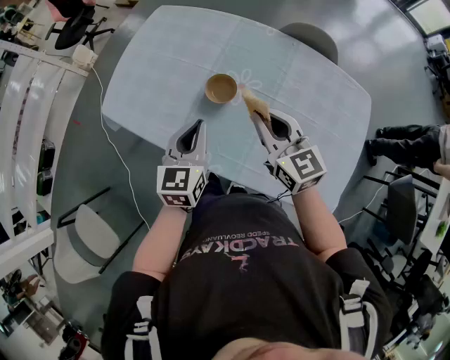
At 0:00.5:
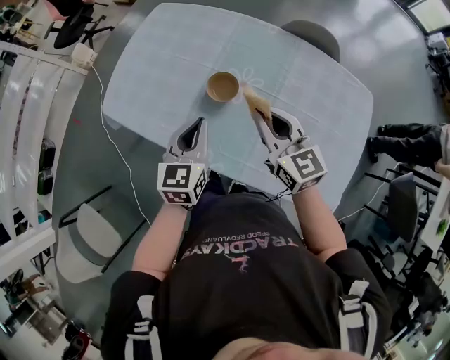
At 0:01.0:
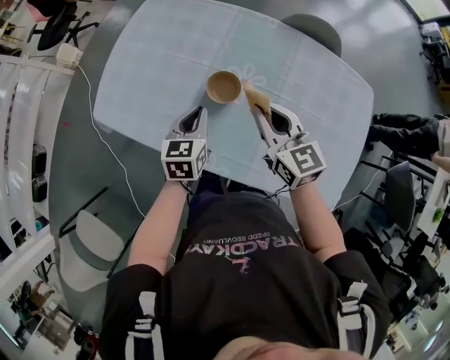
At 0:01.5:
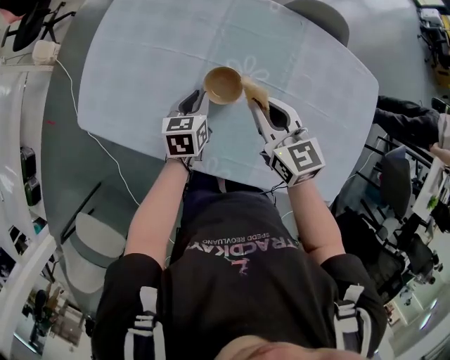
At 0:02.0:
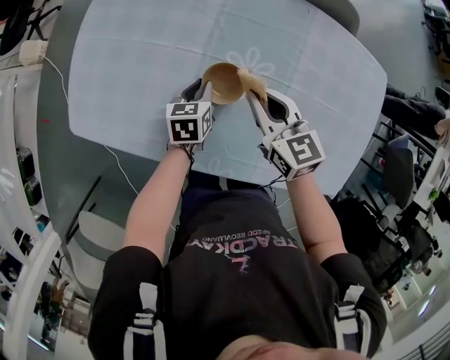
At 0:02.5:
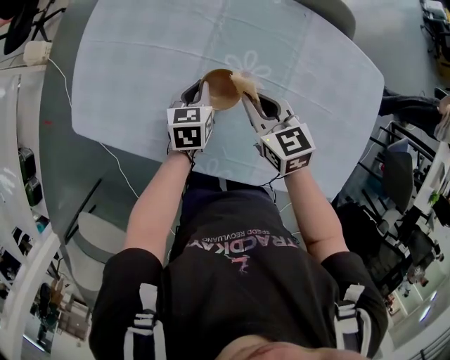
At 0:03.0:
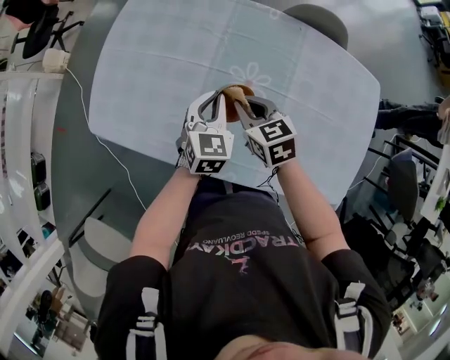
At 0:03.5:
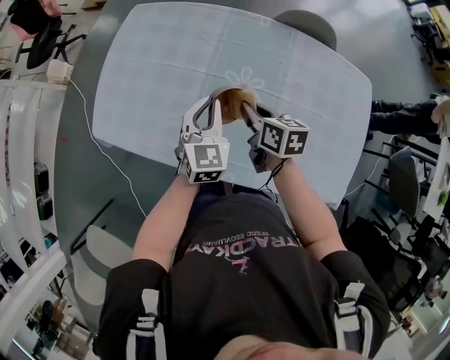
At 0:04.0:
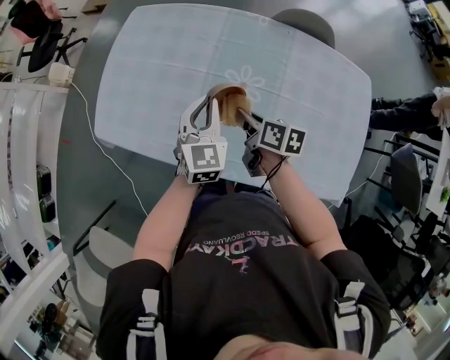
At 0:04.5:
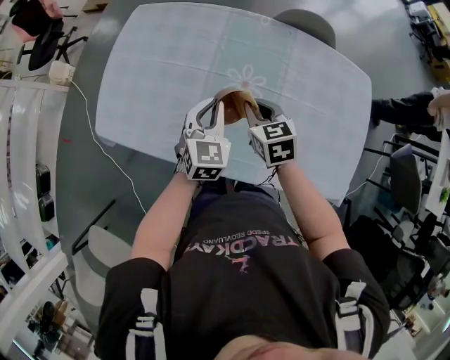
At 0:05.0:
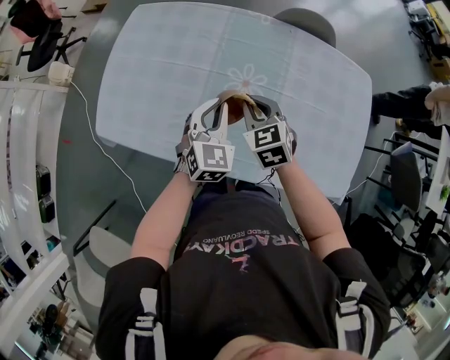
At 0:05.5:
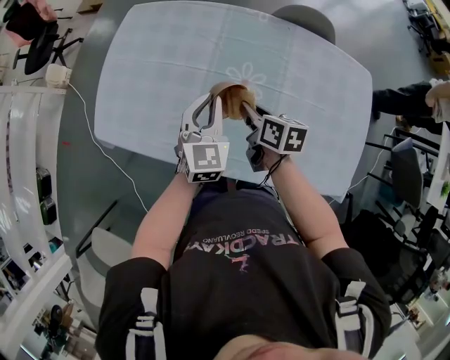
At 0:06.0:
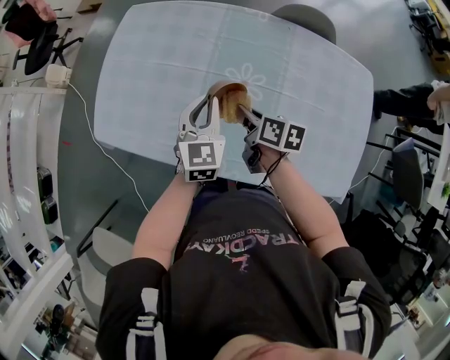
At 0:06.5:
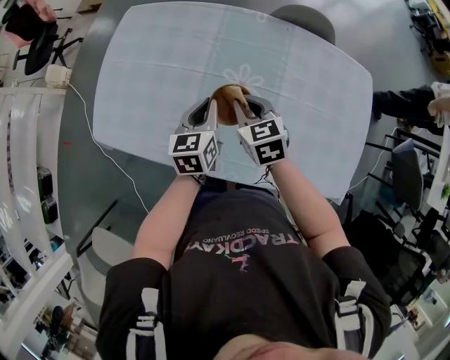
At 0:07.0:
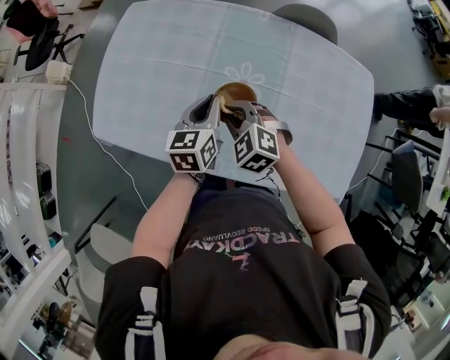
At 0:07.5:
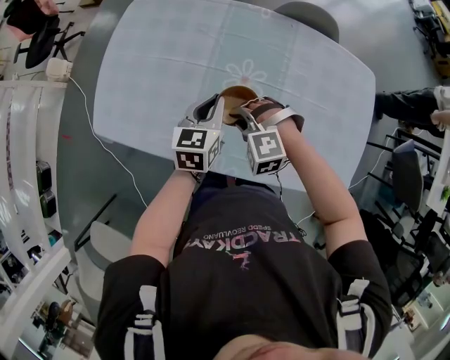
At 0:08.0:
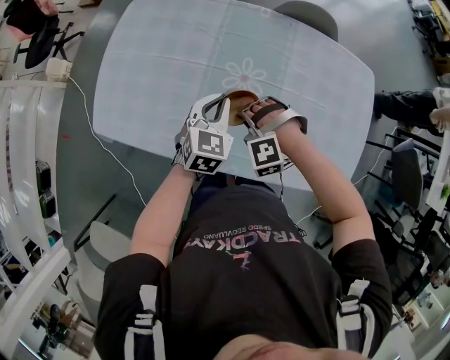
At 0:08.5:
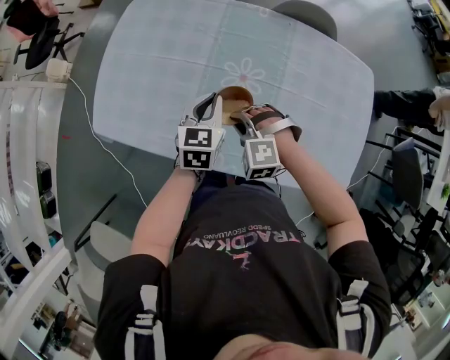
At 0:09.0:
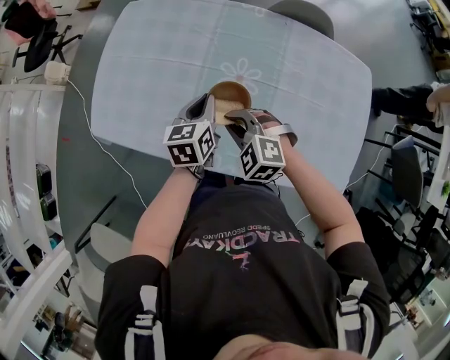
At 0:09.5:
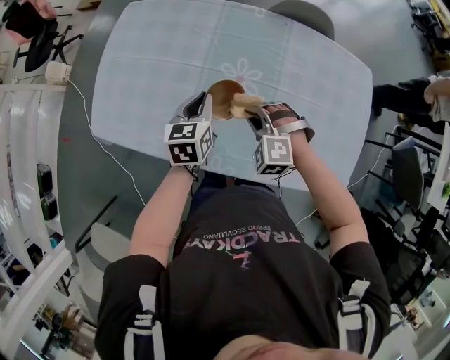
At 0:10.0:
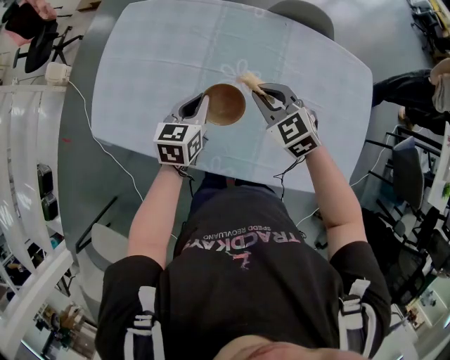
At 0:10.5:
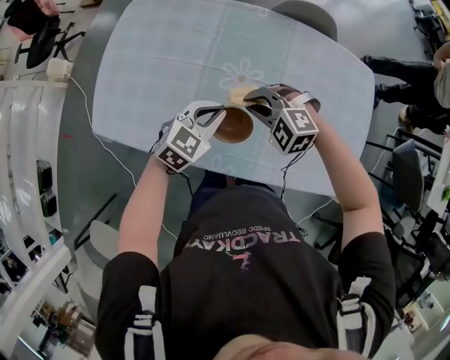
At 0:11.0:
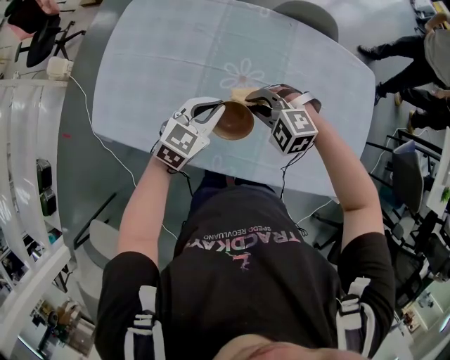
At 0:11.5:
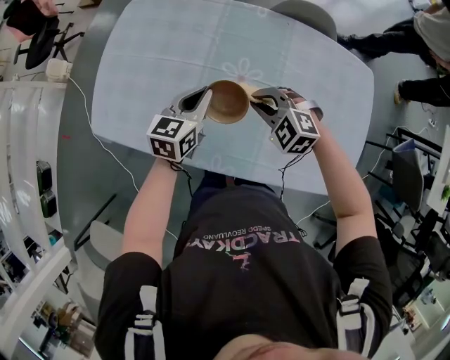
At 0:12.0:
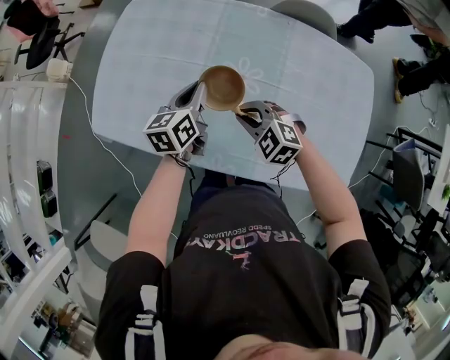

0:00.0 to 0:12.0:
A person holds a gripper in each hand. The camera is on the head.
0:00.0 to 0:02.0: The right gripper travels downward and forward by roughly 20 cm; the left gripper is displaced downward and forward by some 30 cm, and swivels approximately 30 degrees.
0:02.0 to 0:04.0: The right gripper goes roughly 5 cm backward, and rotates around the line of its fingers by roughly 40 degrees, clockwise from behind, while the left gripper is displaced upward by about 20 cm, and rotates some 40 degrees.
0:06.0 to 0:08.0: The right gripper shifts some 5 cm backward, and rotates around the line of its fingers by roughly 140 degrees, counterclockwise from behind. Meanwhile the left gripper moves approximately 5 cm.
0:08.0 to 0:10.0: The right gripper is displaced forward, upward and to the right by approximately 10 cm, and rotates around the line of its fingers by approximately 60 degrees, clockwise from behind; the left gripper changes its angle by about 20 degrees.
0:10.0 to 0:12.0: The right gripper goes about 10 cm backward, to the left and downward, and rotates roughly 20 degrees. The left gripper goes backward and returns, about 5 cm each way.

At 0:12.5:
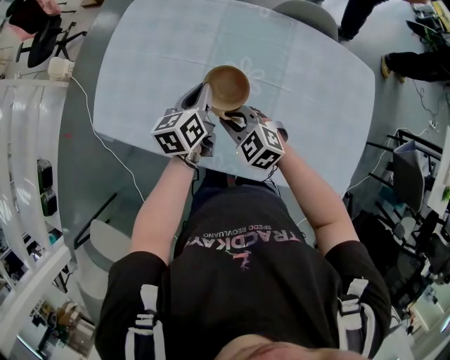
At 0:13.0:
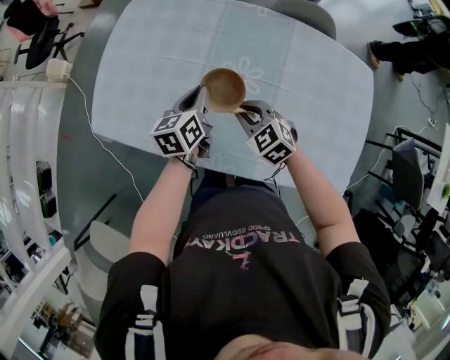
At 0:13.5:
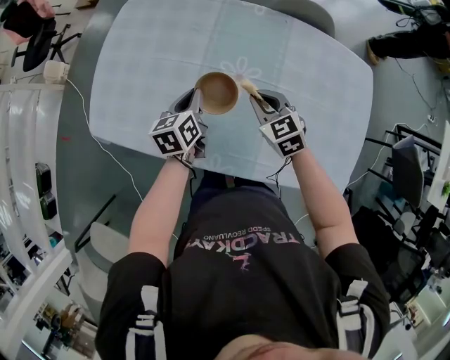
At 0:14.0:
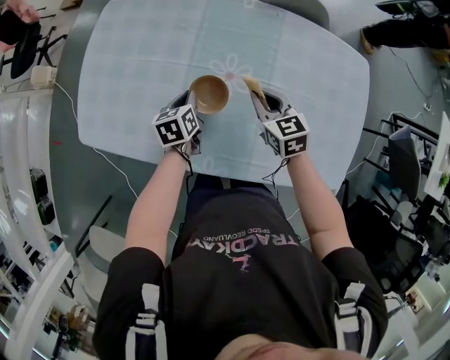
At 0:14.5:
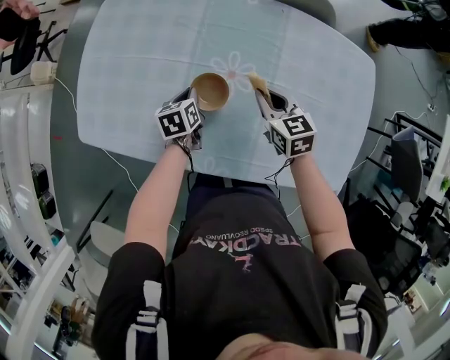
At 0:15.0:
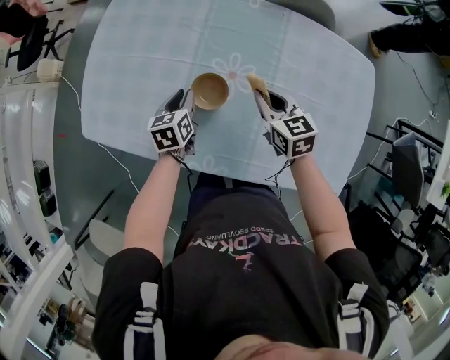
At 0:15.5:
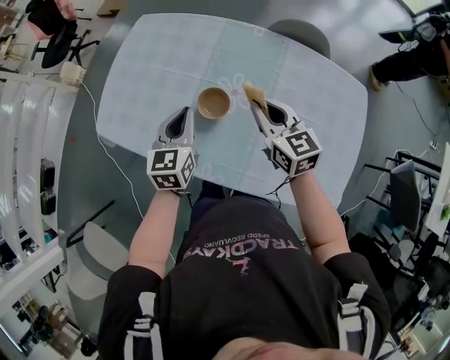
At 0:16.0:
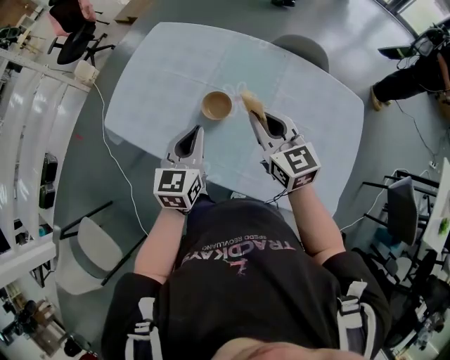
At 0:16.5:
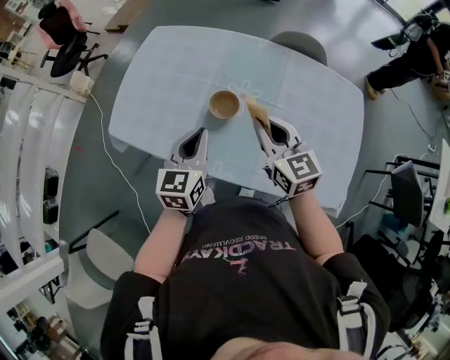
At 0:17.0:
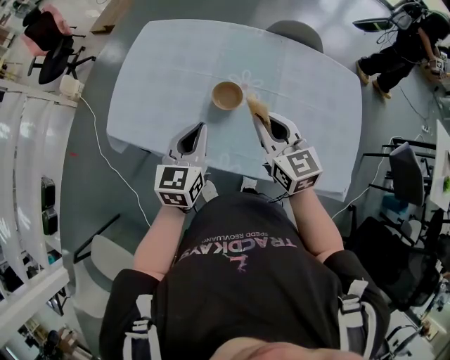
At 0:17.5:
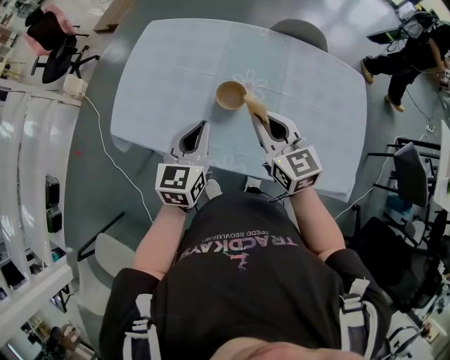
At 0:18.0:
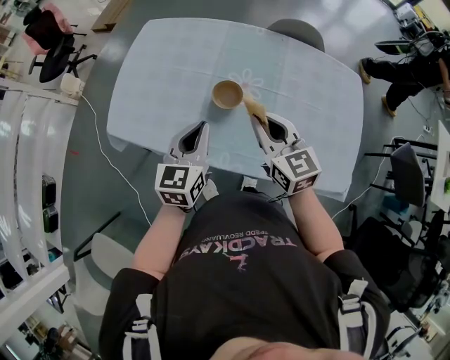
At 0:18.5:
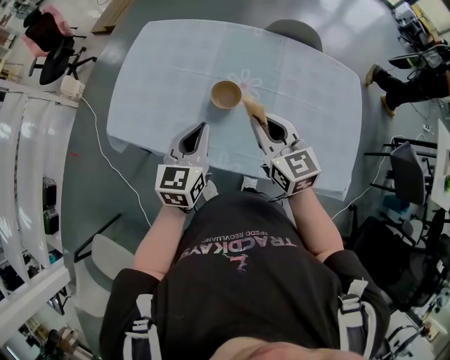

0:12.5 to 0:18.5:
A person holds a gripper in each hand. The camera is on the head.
0:12.5 to 0:14.5: The right gripper moves to the right and forward, roughly 15 cm, and swivels roughly 50 degrees. Meanwhile the left gripper is displaced downward by some 15 cm, and changes its angle by about 20 degrees.
0:14.5 to 0:16.5: The grippers both shift upward and backward by roughly 25 cm. The right gripper turns by about 20 degrees. The left gripper tilts its fingers roughly 30 degrees upward.
0:16.5 to 0:18.5: The grippers make only small movements.

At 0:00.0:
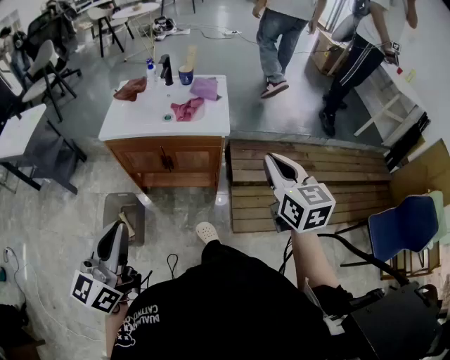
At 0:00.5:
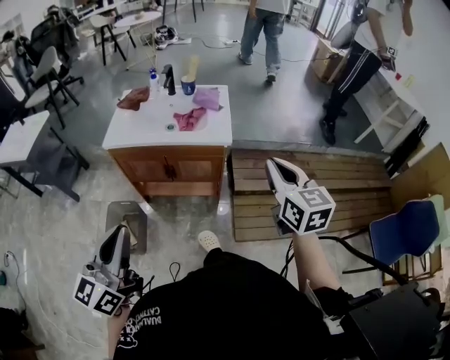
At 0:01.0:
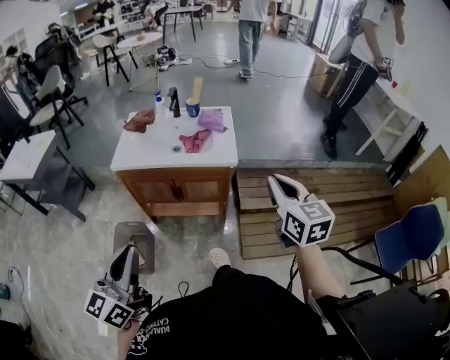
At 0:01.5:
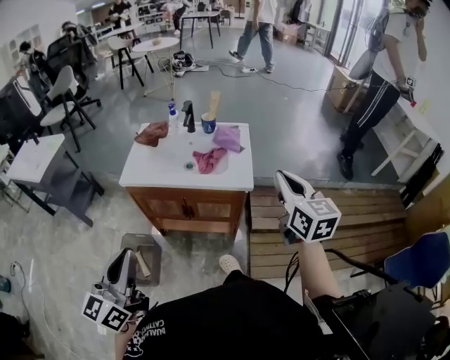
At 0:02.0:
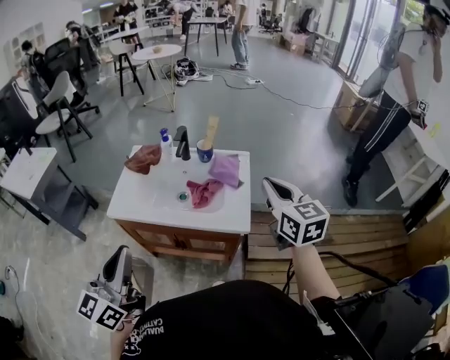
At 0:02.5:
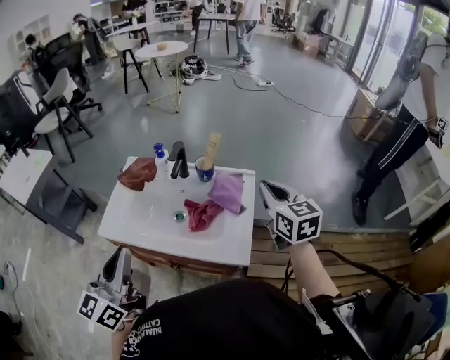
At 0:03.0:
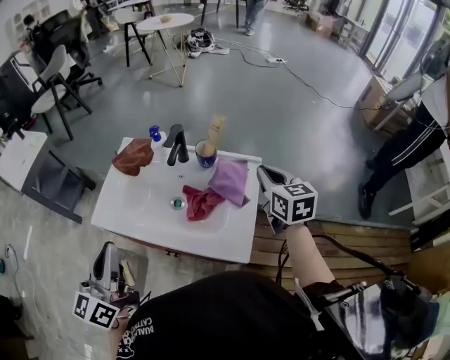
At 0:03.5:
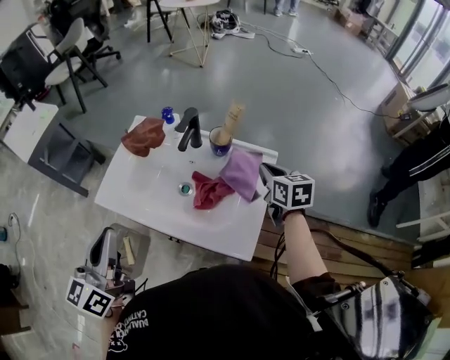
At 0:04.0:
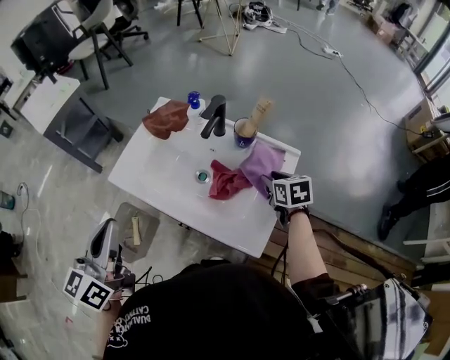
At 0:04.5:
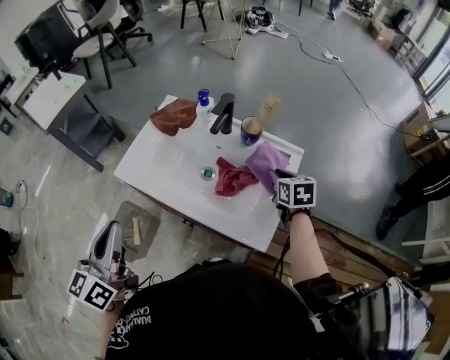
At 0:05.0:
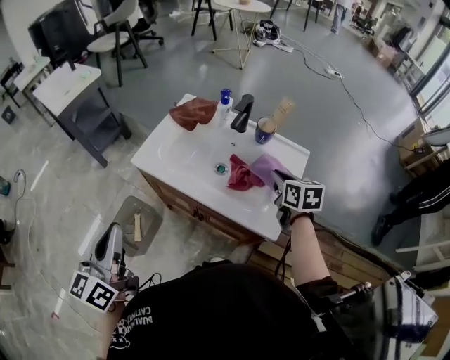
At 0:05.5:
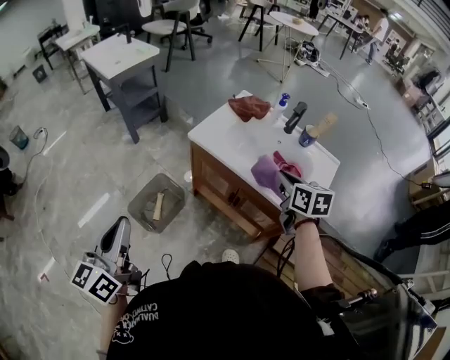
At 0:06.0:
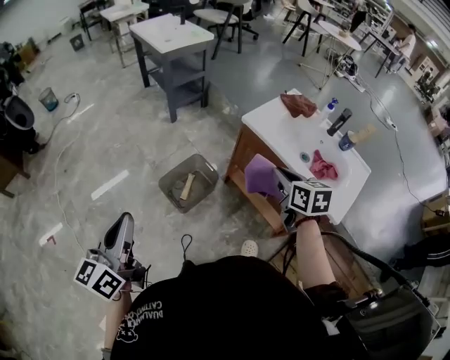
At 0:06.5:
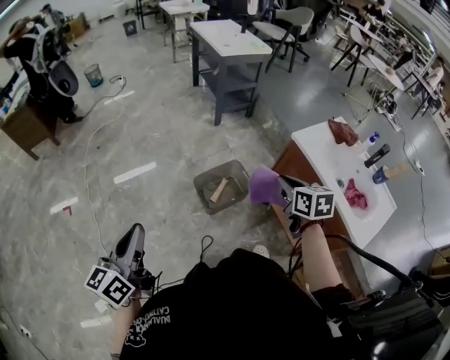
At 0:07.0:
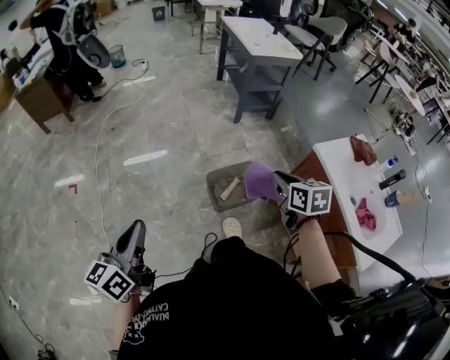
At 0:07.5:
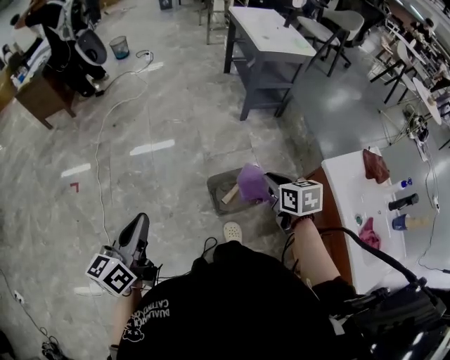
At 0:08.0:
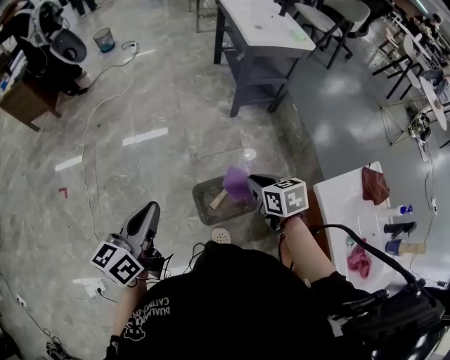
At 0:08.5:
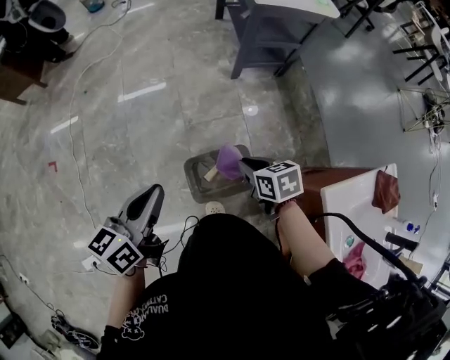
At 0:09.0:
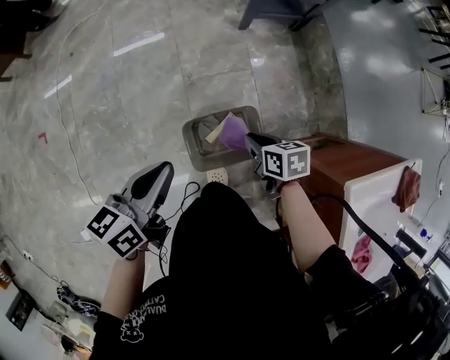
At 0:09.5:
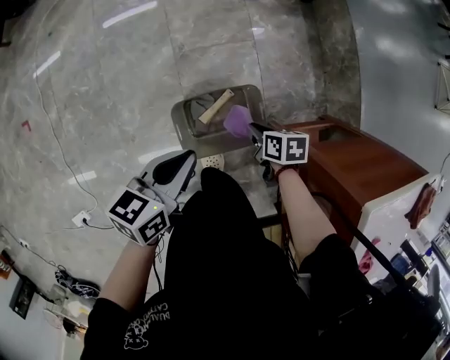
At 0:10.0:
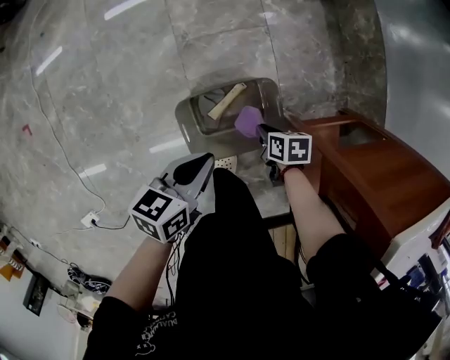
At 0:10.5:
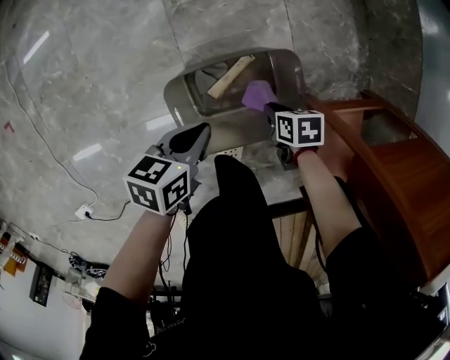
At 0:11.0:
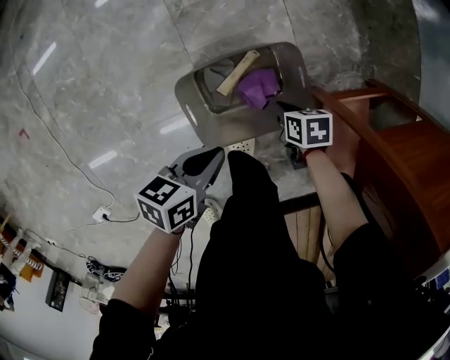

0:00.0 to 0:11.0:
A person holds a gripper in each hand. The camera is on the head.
0:00.0 to 0:02.0: The grippers both shift forward by approximately 30 cm.
0:02.0 to 0:03.5: The left gripper travels forward by some 15 cm. Meanwhile the right gripper is displaced forward and downward by approximately 35 cm, and swivels about 30 degrees.
0:03.5 to 0:05.5: The left gripper is displaced backward and to the left by some 35 cm, while the right gripper is displaced to the left and backward by about 35 cm, and opens, then closes again.
0:05.5 to 0:07.5: The left gripper ends up about 30 cm from where it was, and turns by approximately 30 degrees. Meanwhile the right gripper changes place by some 50 cm, and rotates roughly 50 degrees.
0:07.5 to 0:09.0: The left gripper is displaced forward, to the right and downward by about 40 cm, and swivels roughly 20 degrees; the right gripper is displaced downward and forward by some 30 cm, and swivels some 30 degrees.
0:09.0 to 0:11.0: The two grippers go some 35 cm downward. The left gripper turns by about 30 degrees.
